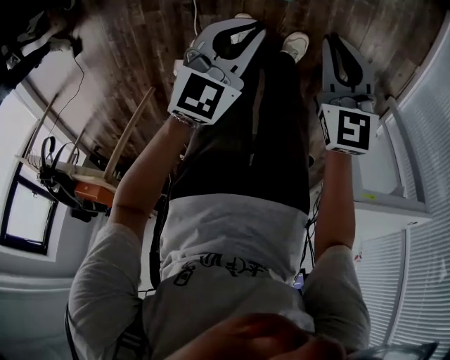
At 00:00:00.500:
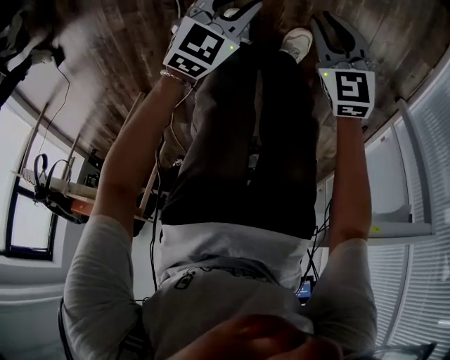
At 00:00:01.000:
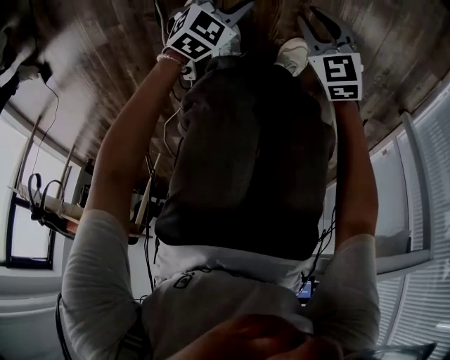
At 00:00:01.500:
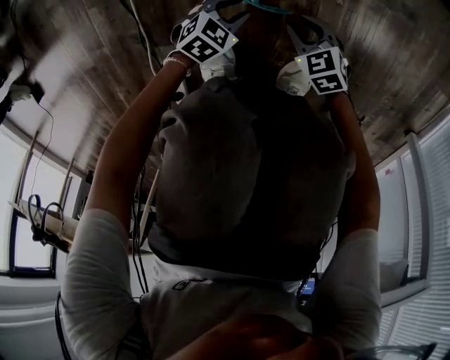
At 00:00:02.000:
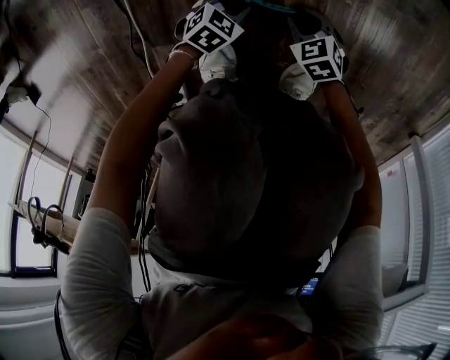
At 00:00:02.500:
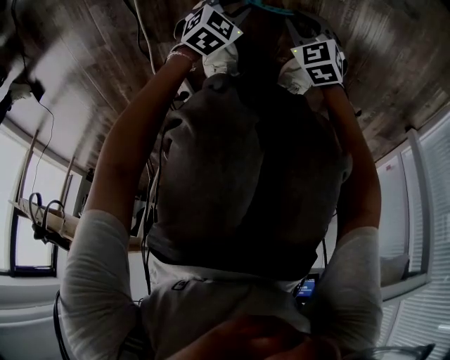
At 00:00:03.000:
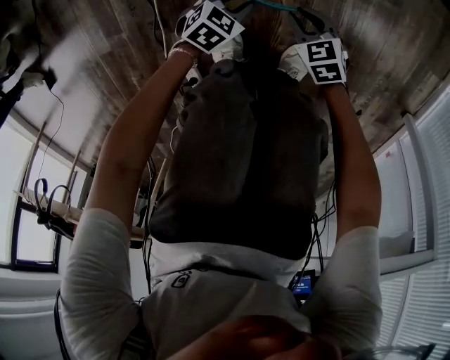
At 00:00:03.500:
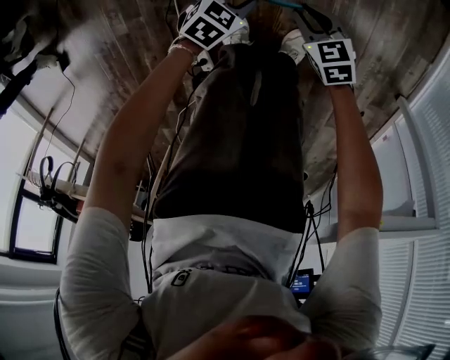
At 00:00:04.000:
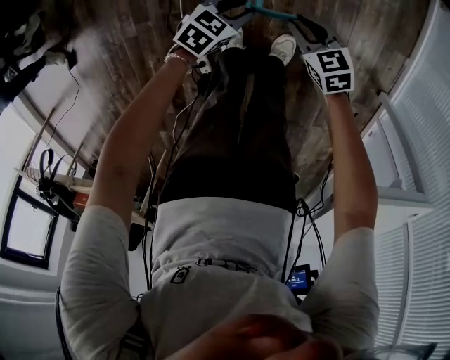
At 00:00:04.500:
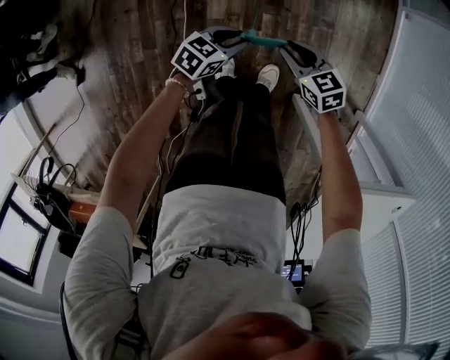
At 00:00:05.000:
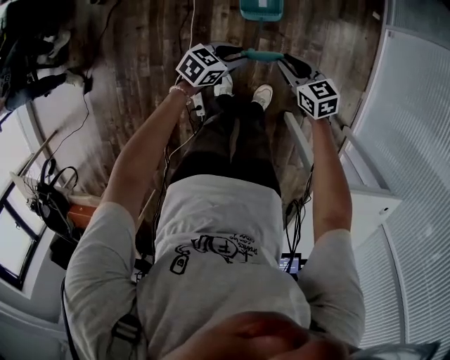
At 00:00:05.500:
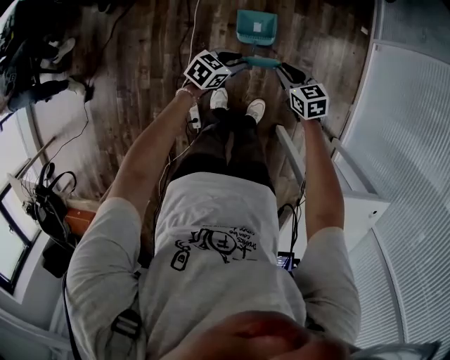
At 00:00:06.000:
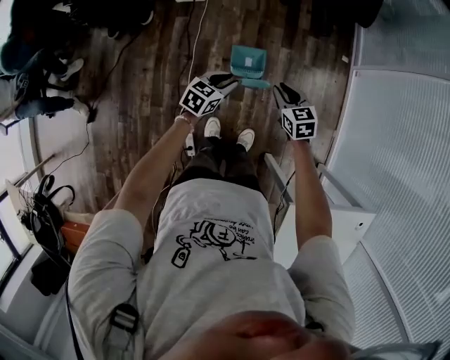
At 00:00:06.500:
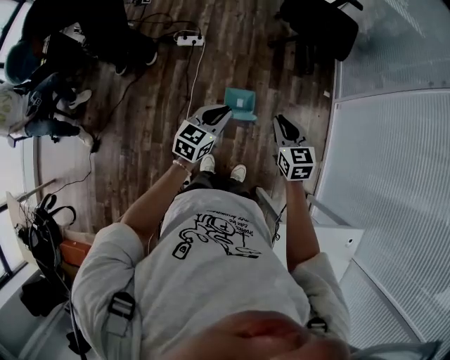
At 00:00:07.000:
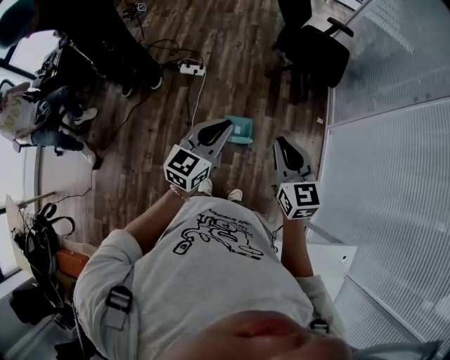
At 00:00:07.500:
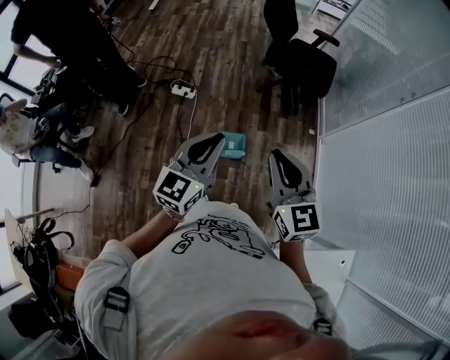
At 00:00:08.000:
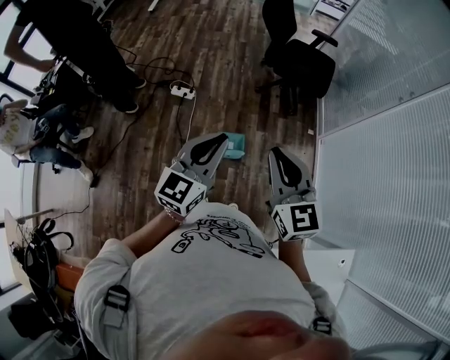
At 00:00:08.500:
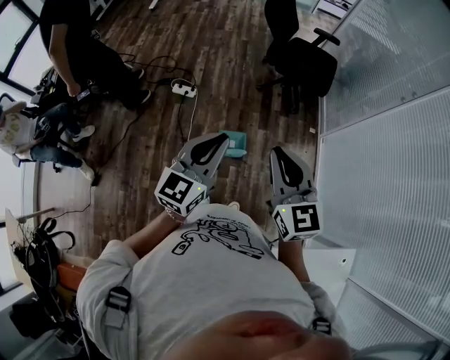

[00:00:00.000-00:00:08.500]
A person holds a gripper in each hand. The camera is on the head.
00:00:00.000 to 00:00:02.000: Both grippers move downward, about 60 cm. The left gripper changes its angle by roughly 30 degrees, and opens its fingers. The right gripper rotates roughly 30 degrees.
00:00:02.000 to 00:00:04.000: The two grippers go some 50 cm upward.
00:00:04.000 to 00:00:06.500: The grippers both shift upward by roughly 50 cm. The right gripper changes its angle by about 30 degrees; the left gripper changes its angle by some 40 degrees.
00:00:06.500 to 00:00:08.500: The two grippers go some 25 cm upward. The right gripper rotates some 20 degrees. Meanwhile the left gripper turns by some 20 degrees.

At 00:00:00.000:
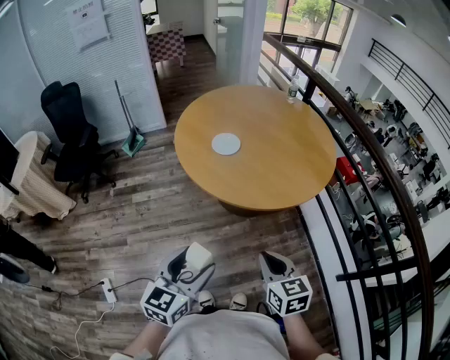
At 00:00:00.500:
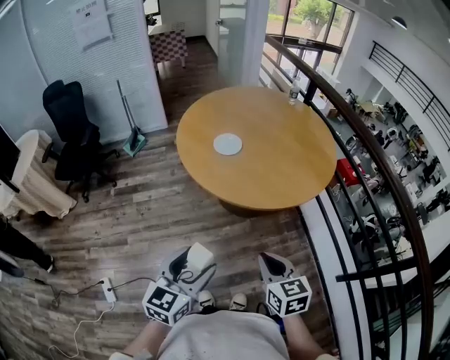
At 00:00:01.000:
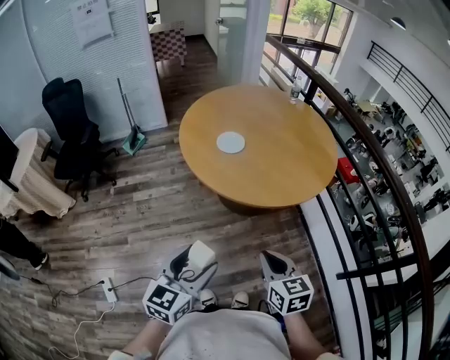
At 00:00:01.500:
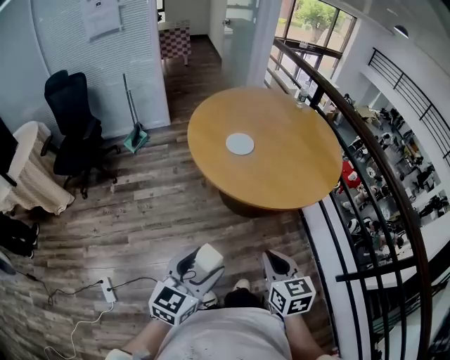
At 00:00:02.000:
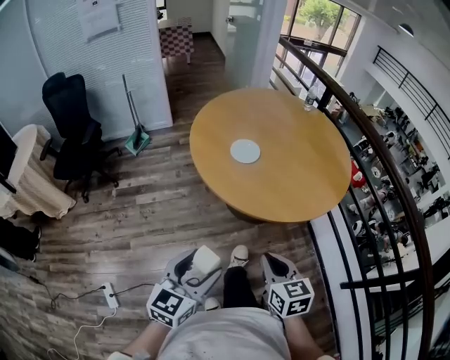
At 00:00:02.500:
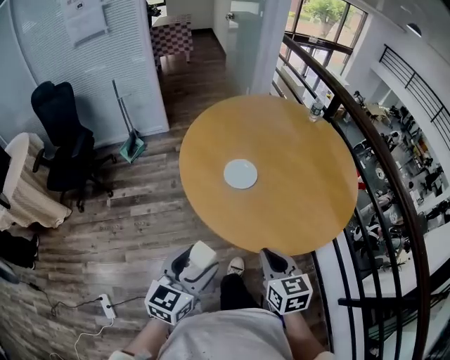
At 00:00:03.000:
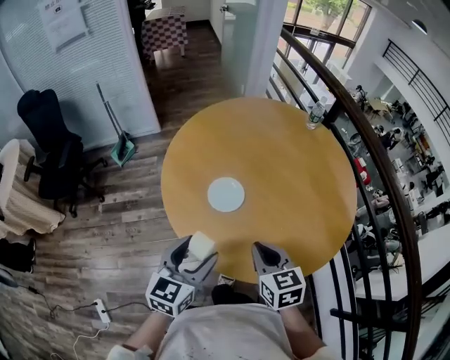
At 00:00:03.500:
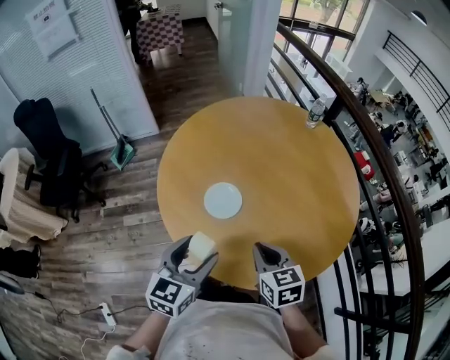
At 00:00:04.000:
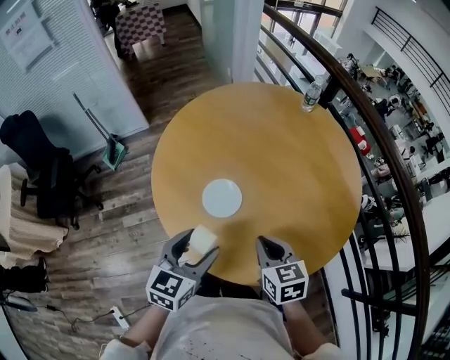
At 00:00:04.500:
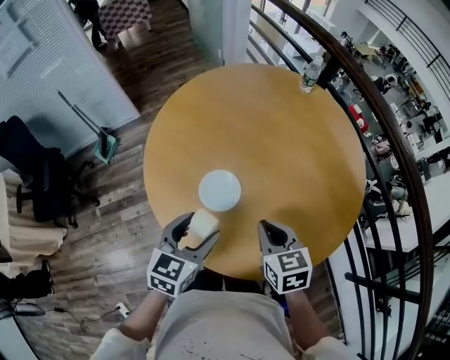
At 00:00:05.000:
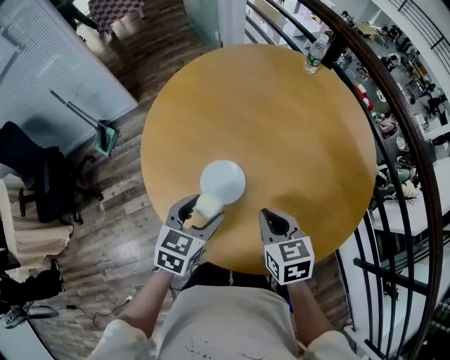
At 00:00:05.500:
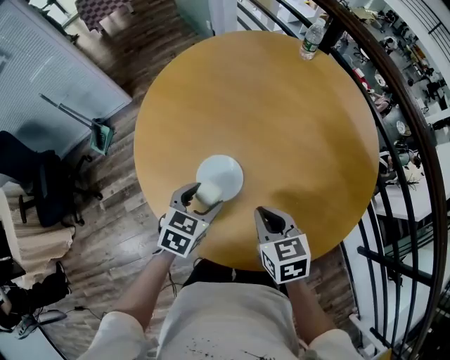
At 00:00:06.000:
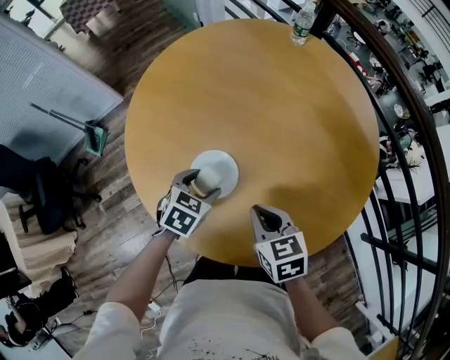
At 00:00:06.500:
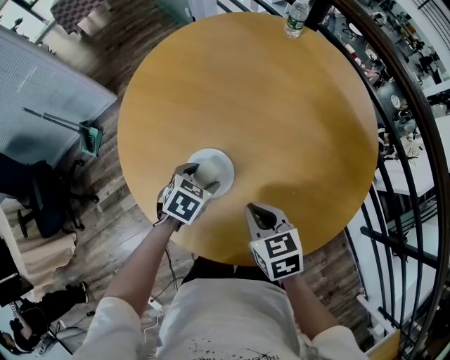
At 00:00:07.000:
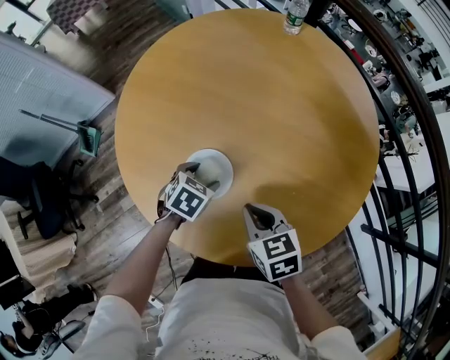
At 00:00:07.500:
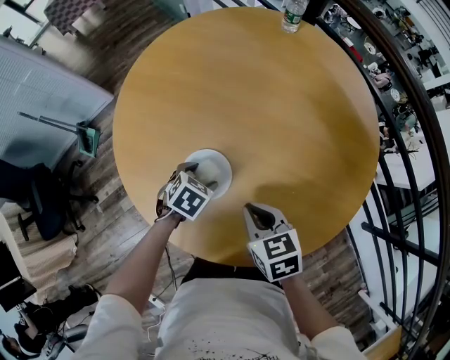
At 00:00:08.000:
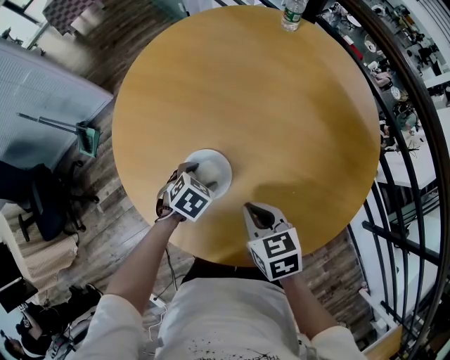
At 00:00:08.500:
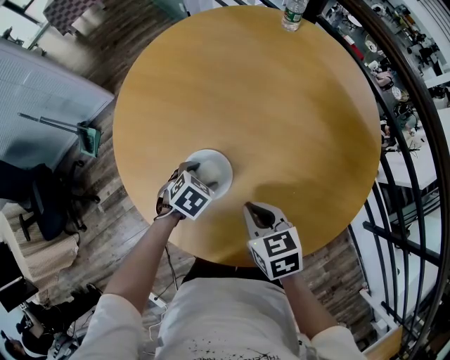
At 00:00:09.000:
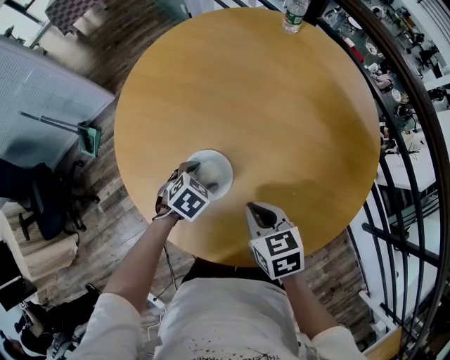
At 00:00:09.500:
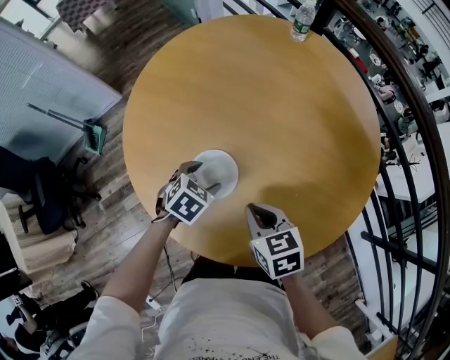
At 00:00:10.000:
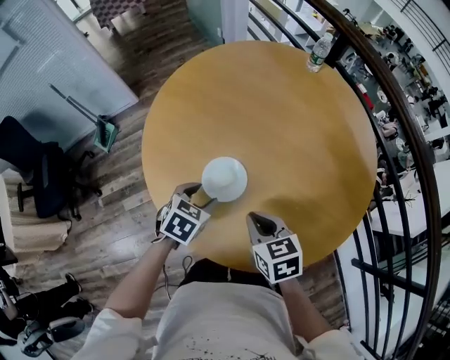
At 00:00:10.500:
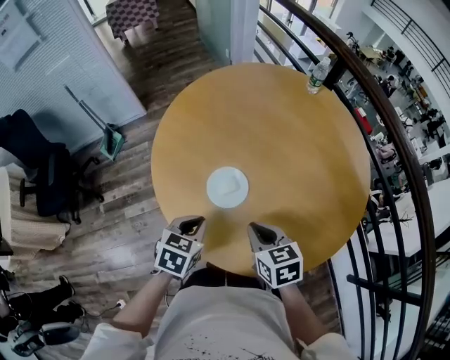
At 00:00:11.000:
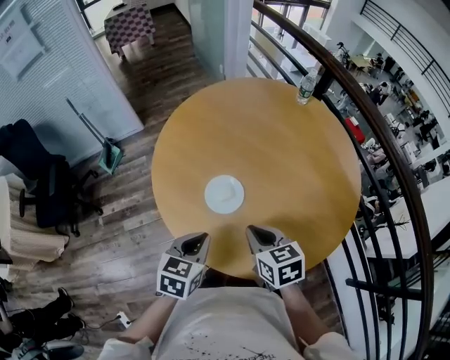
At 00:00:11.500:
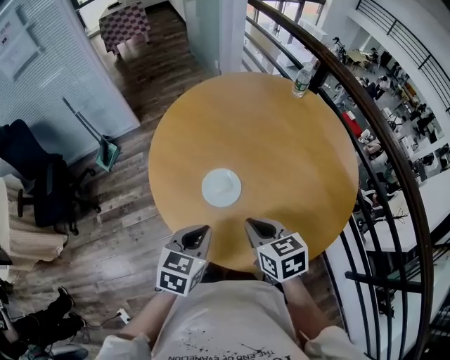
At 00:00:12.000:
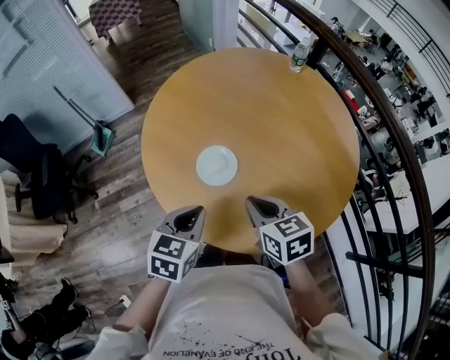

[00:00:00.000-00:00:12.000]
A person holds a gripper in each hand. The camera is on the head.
00:00:00.000 to 00:00:02.000: The two grippers go approximately 10 cm to the left.
00:00:02.000 to 00:00:04.000: The grippers both shift forward by approximately 35 cm.
00:00:04.000 to 00:00:06.000: The right gripper is displaced downward by roughly 5 cm; the left gripper shifts about 25 cm downward and forward, and changes its angle by roughly 40 degrees.
00:00:06.000 to 00:00:08.000: The left gripper shifts roughly 5 cm downward.
00:00:08.000 to 00:00:10.000: The left gripper is displaced upward and backward by about 10 cm.
00:00:10.000 to 00:00:12.000: The left gripper heads upward and backward, covering some 15 cm, turns by about 20 degrees, and closes. Meanwhile the right gripper heads upward, covering approximately 5 cm.

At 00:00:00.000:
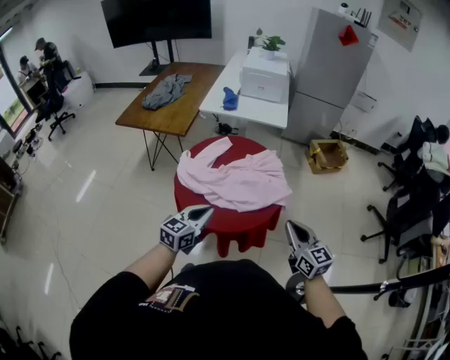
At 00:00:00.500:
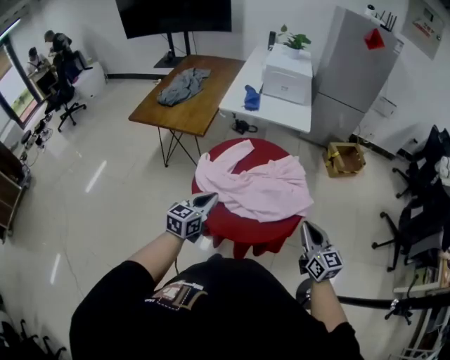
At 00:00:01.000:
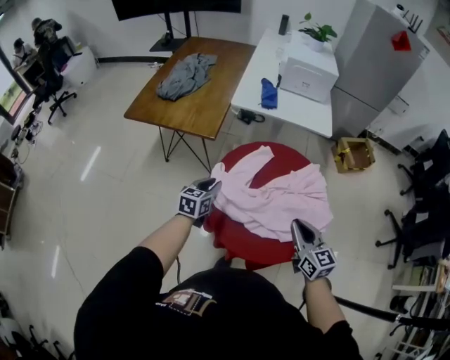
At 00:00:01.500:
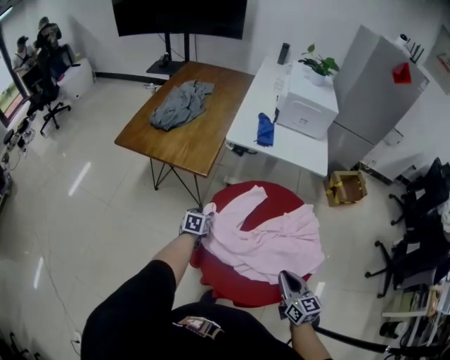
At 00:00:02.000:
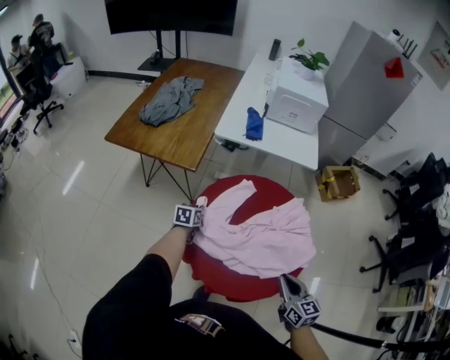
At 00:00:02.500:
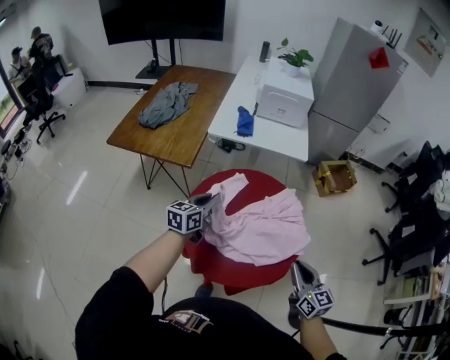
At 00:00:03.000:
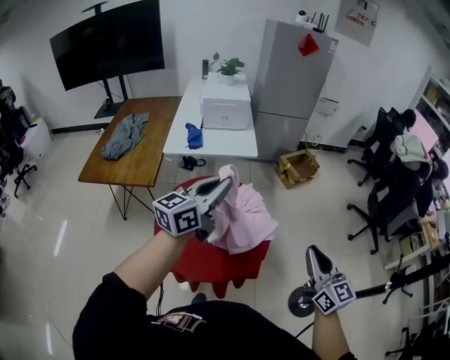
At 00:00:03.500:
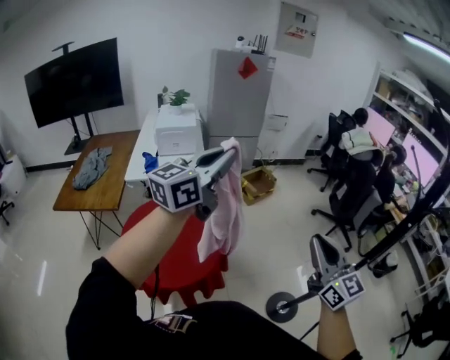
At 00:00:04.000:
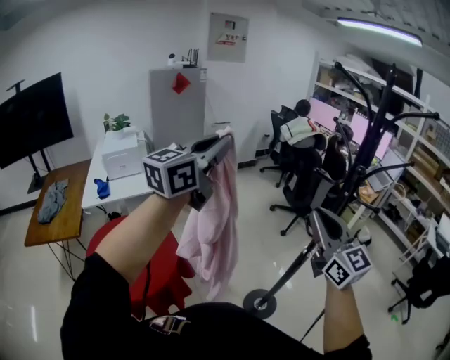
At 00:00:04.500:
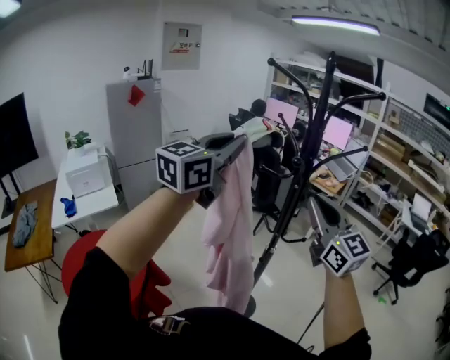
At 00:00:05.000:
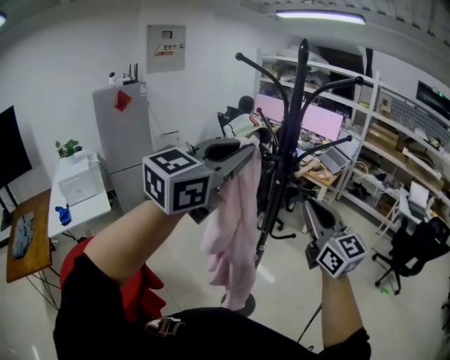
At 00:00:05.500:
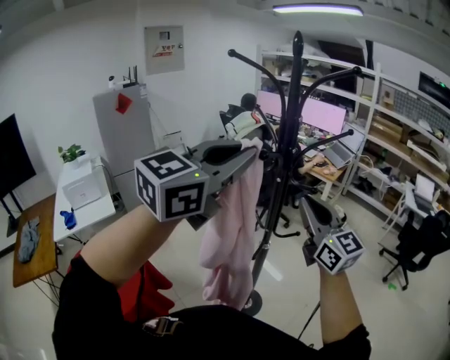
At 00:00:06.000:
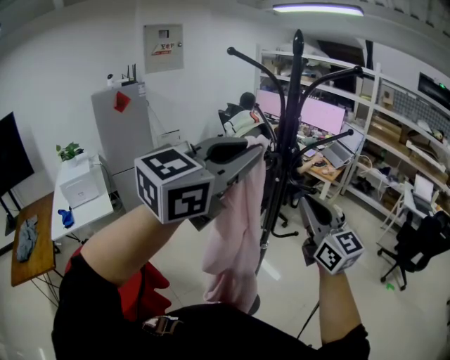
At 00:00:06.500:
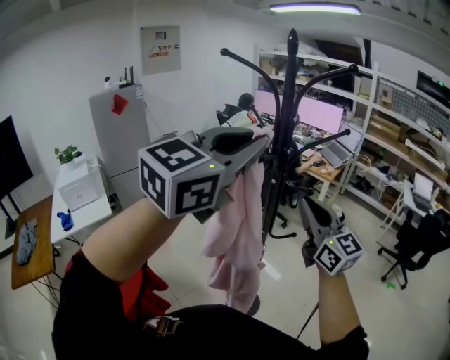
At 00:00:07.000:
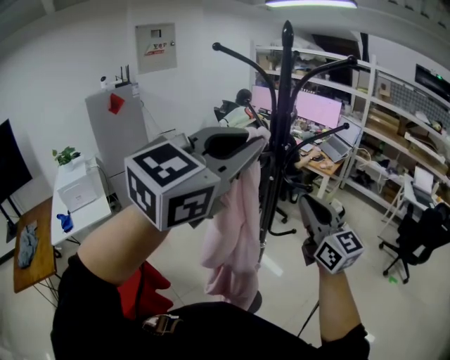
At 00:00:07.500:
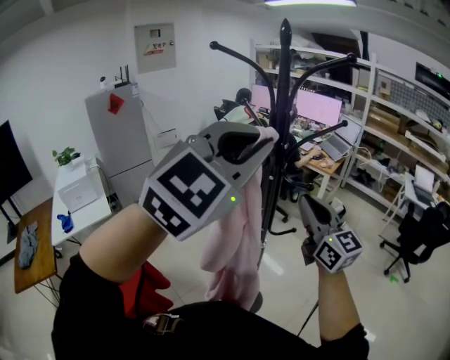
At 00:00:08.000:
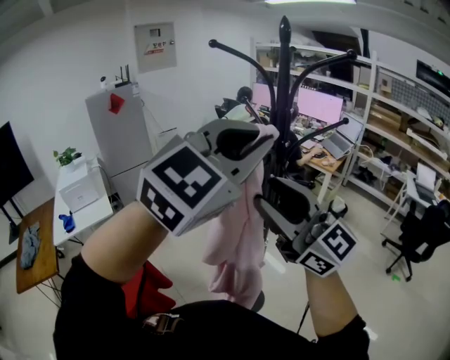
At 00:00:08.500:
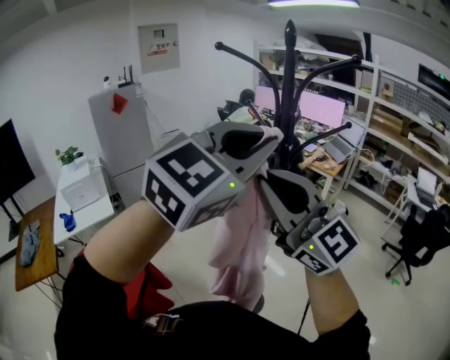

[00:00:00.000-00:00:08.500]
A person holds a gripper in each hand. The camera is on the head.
00:00:00.000 to 00:00:02.000: The left gripper heads forward, downward and to the left, covering about 50 cm, rotates about 40 degrees, and opens, then closes once more; the right gripper goes approximately 20 cm forward, to the left and downward.
00:00:02.000 to 00:00:04.000: The two grippers travel together, some 60 cm. The right gripper angles its fingers upward, by some 40 degrees. The left gripper heads upward, covering about 70 cm, and tilts its fingers approximately 60 degrees upward.
00:00:04.000 to 00:00:06.500: The left gripper is displaced to the right by roughly 30 cm, and swivels some 30 degrees, while the right gripper moves to the right, some 20 cm.
00:00:06.500 to 00:00:08.500: The right gripper goes about 20 cm to the left, upward and backward, turns by roughly 30 degrees, and opens, then closes again.
